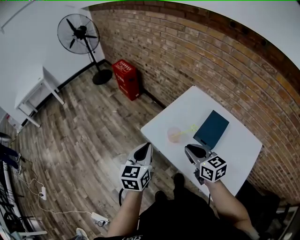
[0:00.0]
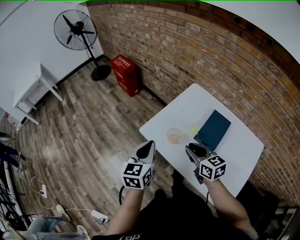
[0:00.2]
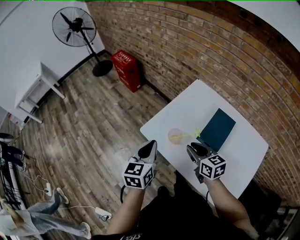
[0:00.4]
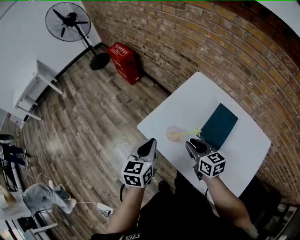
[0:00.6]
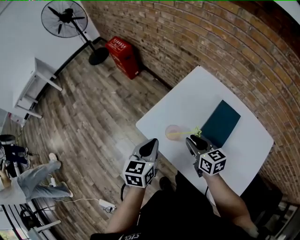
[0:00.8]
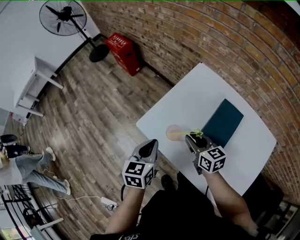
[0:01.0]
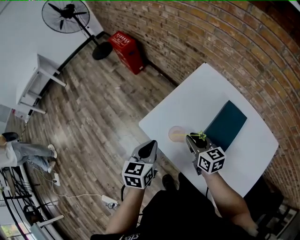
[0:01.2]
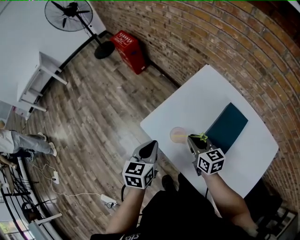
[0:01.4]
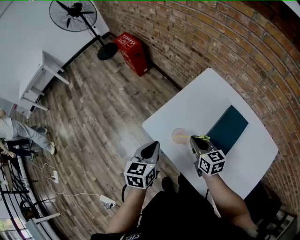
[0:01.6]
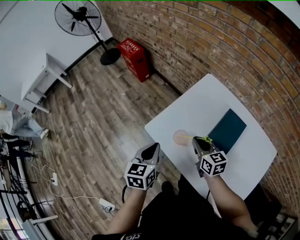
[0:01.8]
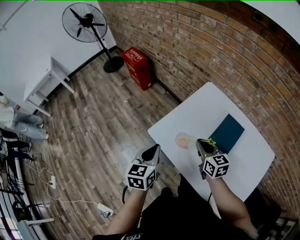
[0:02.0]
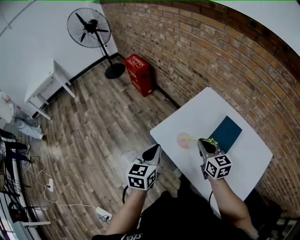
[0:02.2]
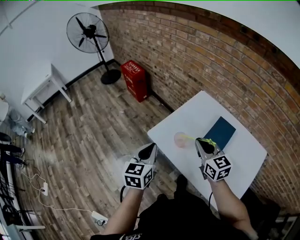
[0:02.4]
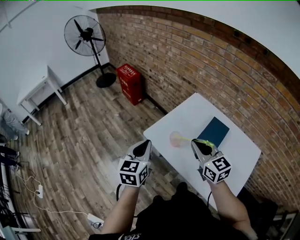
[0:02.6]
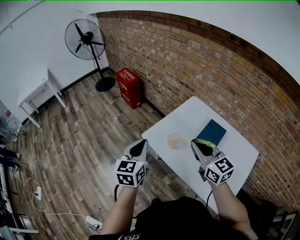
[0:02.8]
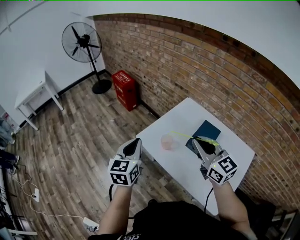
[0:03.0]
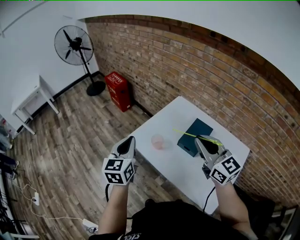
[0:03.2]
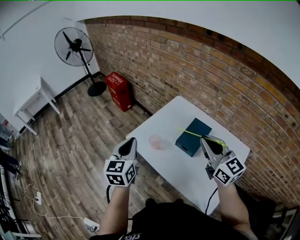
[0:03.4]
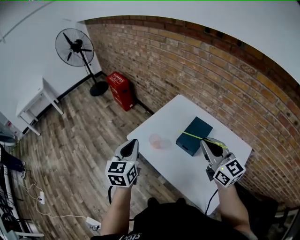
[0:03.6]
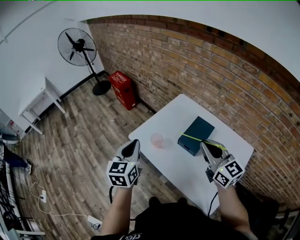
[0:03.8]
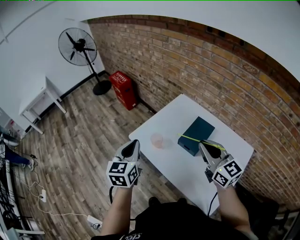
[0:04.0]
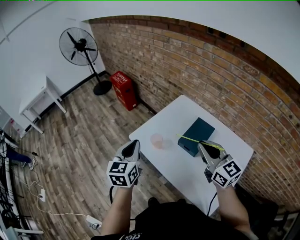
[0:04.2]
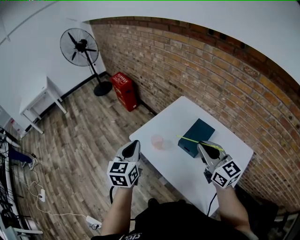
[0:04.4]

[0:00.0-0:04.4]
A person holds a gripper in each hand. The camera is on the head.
0:00.0 to 0:01.4: The left gripper heads downward, forward and to the right, covering about 15 cm. The right gripper is displaced downward and forward by roughly 20 cm.
0:01.4 to 0:03.0: The left gripper is displaced upward and backward by some 20 cm, and swivels some 20 degrees. The right gripper moves upward and backward, roughly 30 cm, and turns by approximately 30 degrees.
0:03.0 to 0:04.4: Both grippers travel together to the right, roughly 10 cm.

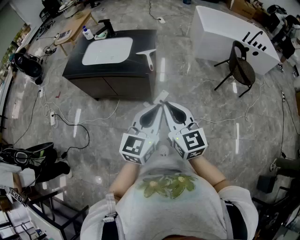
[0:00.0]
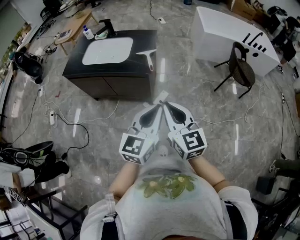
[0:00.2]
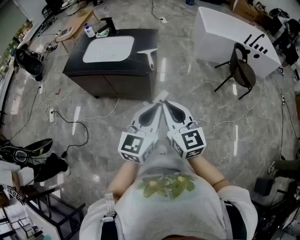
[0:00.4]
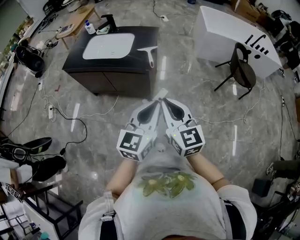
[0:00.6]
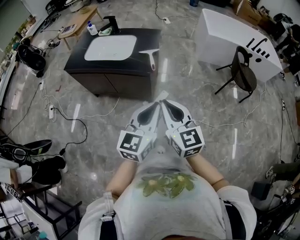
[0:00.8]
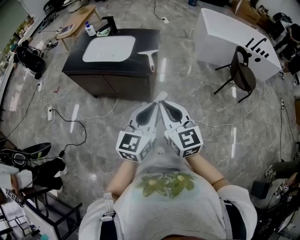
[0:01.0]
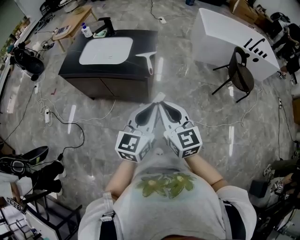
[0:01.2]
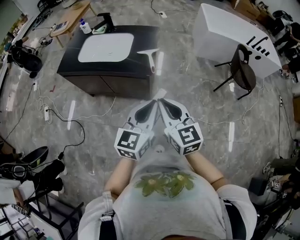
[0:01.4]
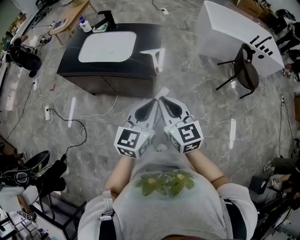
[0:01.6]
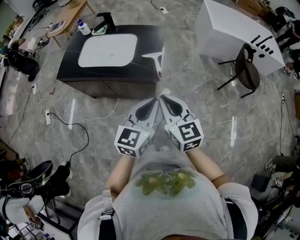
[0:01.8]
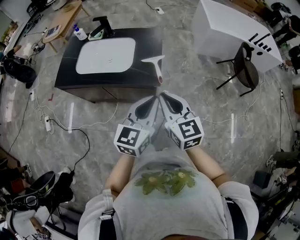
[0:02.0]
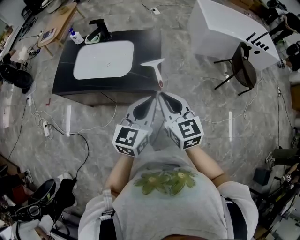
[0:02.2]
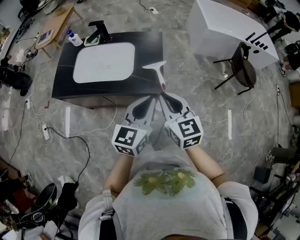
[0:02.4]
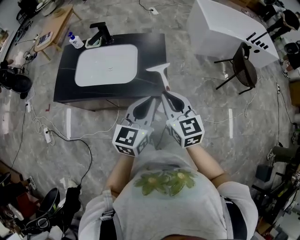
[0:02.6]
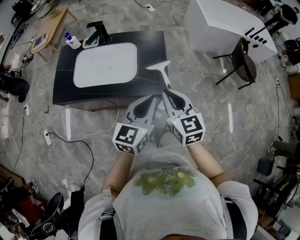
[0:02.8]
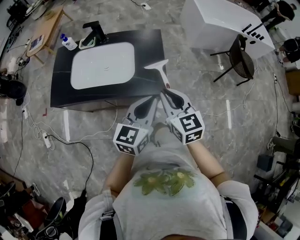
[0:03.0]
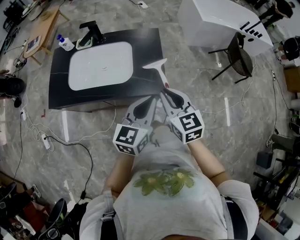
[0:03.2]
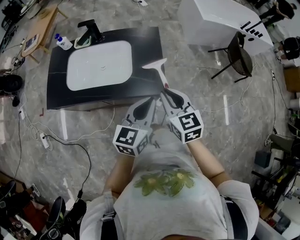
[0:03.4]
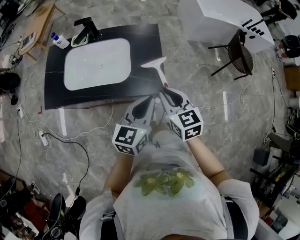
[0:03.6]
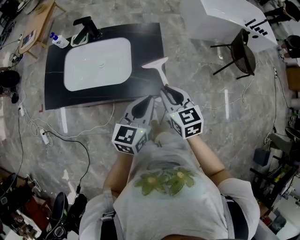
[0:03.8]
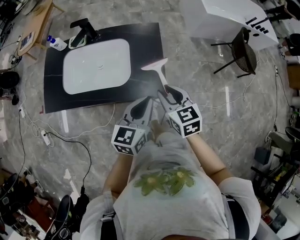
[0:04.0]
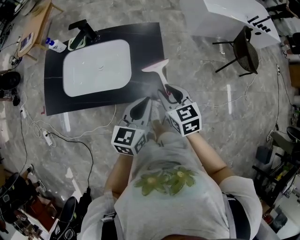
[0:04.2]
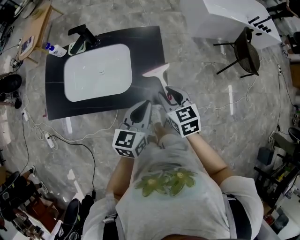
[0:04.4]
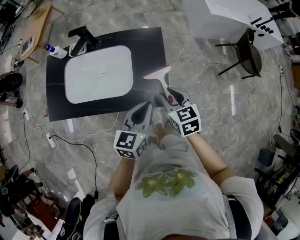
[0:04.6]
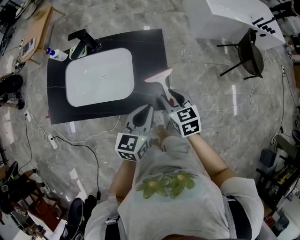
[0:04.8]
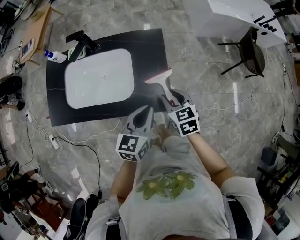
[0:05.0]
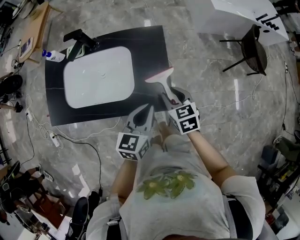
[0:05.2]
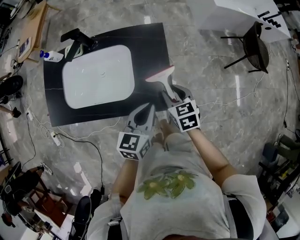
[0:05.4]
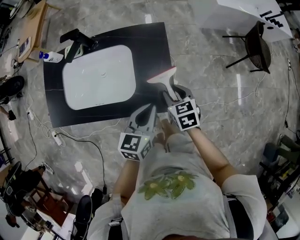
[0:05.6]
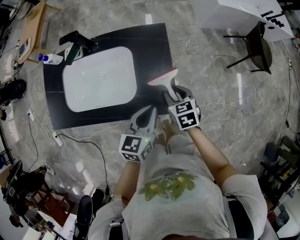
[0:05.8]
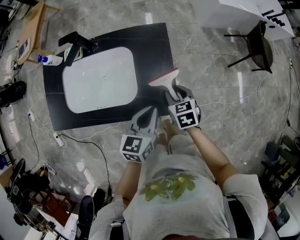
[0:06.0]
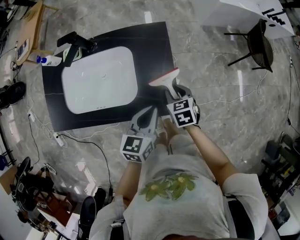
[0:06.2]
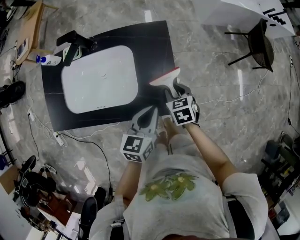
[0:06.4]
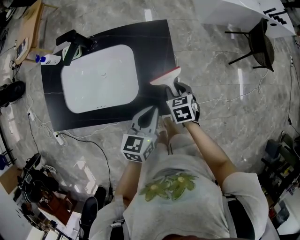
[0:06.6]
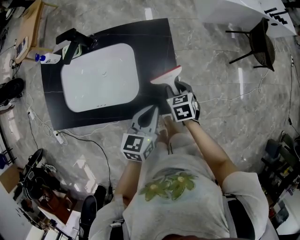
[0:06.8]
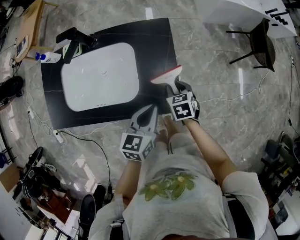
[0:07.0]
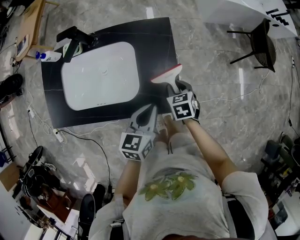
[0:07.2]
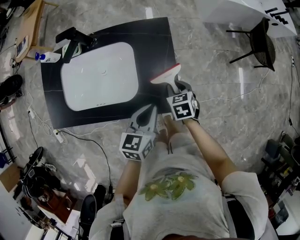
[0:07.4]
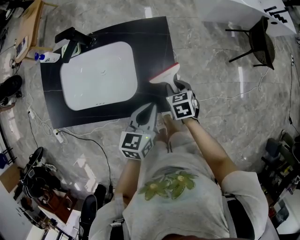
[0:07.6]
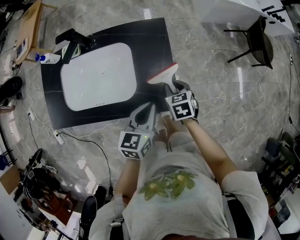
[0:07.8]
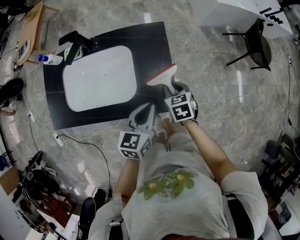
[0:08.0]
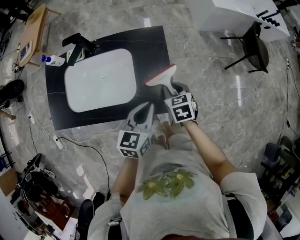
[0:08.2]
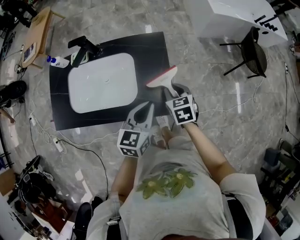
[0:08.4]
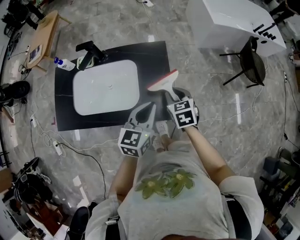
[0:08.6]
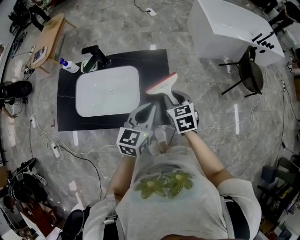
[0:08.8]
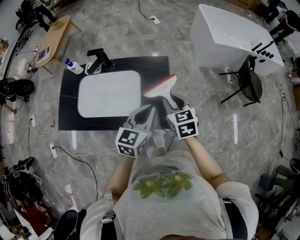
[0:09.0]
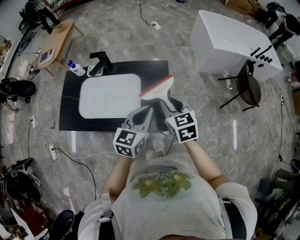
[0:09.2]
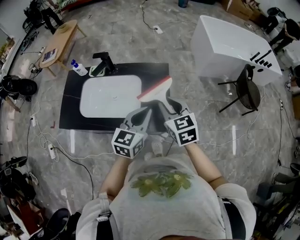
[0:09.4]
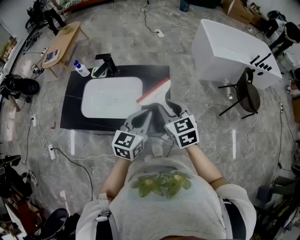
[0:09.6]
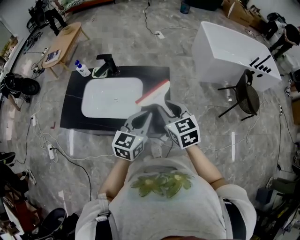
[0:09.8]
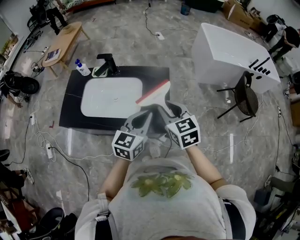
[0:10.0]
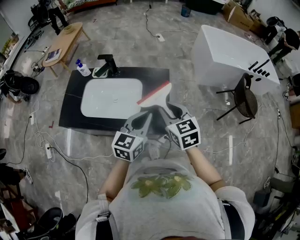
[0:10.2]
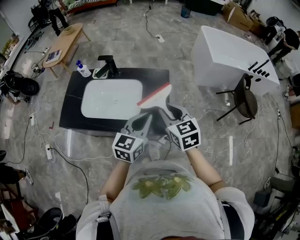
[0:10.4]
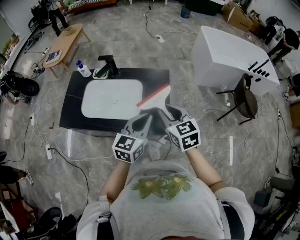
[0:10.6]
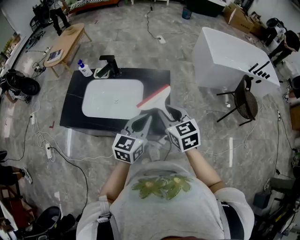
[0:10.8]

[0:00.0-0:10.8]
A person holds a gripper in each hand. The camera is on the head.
0:00.0 to 0:01.6: The grippers both shift forward and to the left by some 10 cm.
0:01.6 to 0:03.0: The grippers both shift forward and to the left by roughly 20 cm.
0:03.0 to 0:04.6: The grippers both shift forward and downward by about 15 cm.
0:04.6 to 0:06.2: The right gripper travels downward and forward by some 15 cm; the left gripper travels downward by approximately 5 cm.
0:06.2 to 0:07.8: The grippers stay close to where they were, moving slightly.
0:07.8 to 0:09.2: The left gripper goes approximately 15 cm upward. The right gripper heads upward, covering some 20 cm, and rotates roughly 30 degrees.
0:09.2 to 0:10.8: The right gripper ends up roughly 5 cm from where it was.

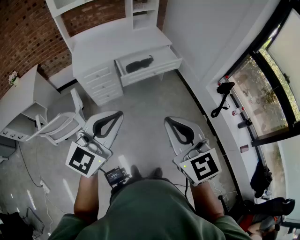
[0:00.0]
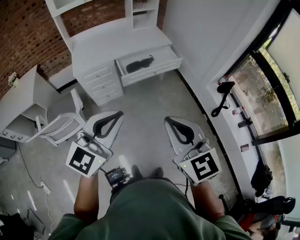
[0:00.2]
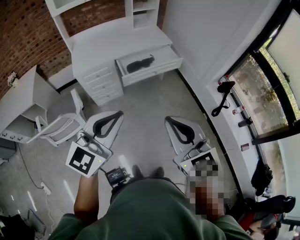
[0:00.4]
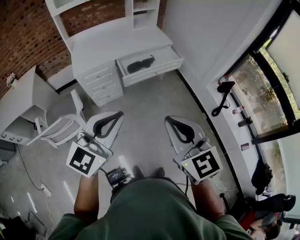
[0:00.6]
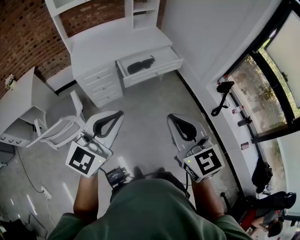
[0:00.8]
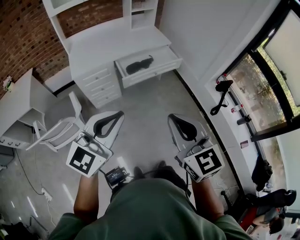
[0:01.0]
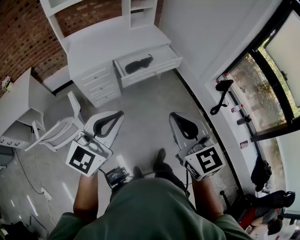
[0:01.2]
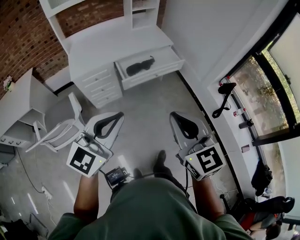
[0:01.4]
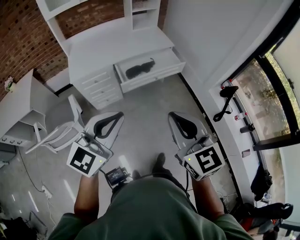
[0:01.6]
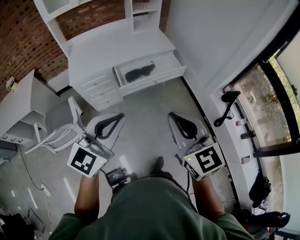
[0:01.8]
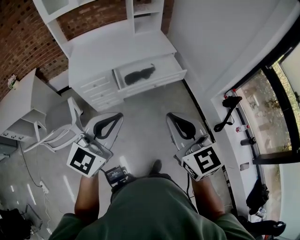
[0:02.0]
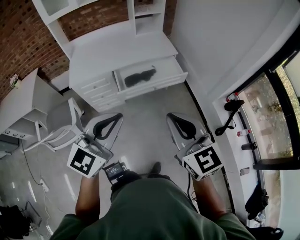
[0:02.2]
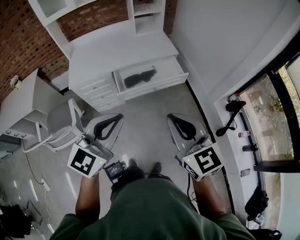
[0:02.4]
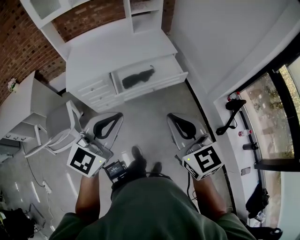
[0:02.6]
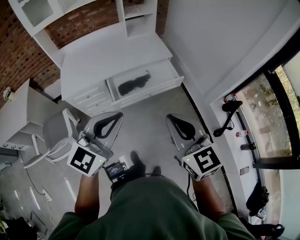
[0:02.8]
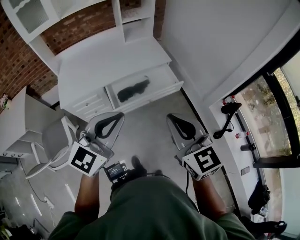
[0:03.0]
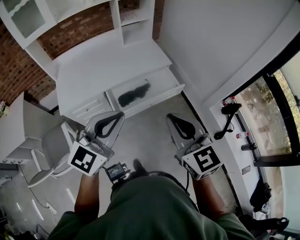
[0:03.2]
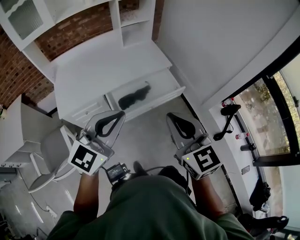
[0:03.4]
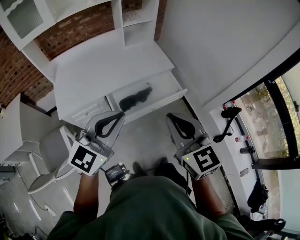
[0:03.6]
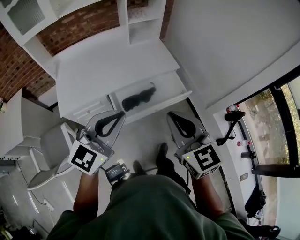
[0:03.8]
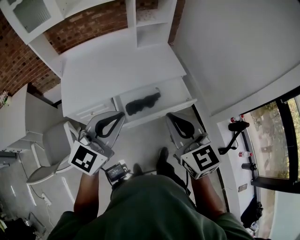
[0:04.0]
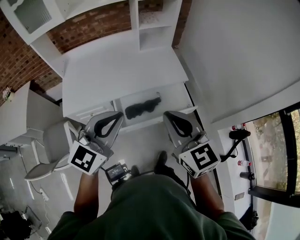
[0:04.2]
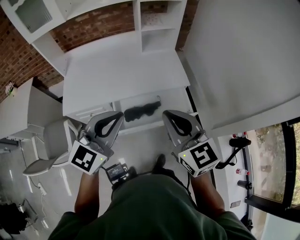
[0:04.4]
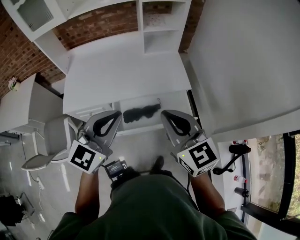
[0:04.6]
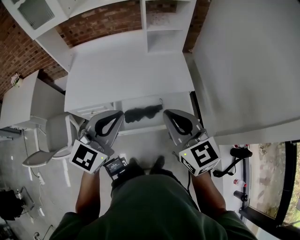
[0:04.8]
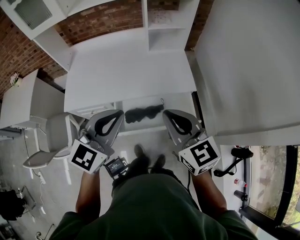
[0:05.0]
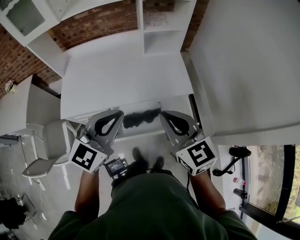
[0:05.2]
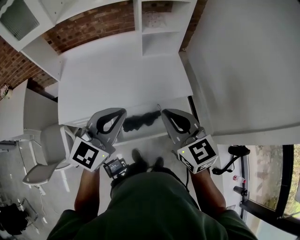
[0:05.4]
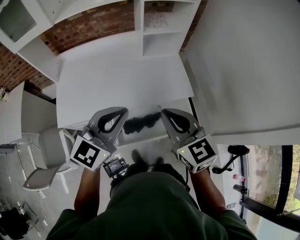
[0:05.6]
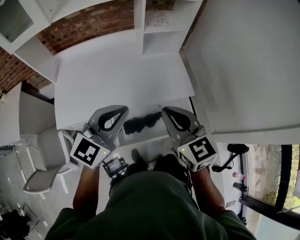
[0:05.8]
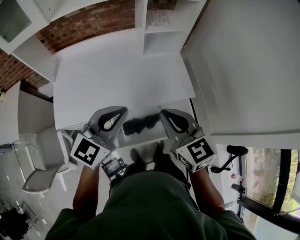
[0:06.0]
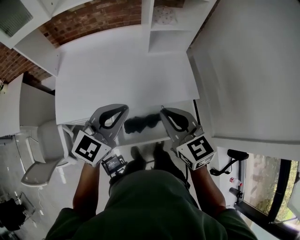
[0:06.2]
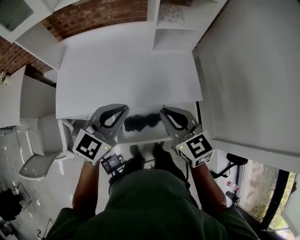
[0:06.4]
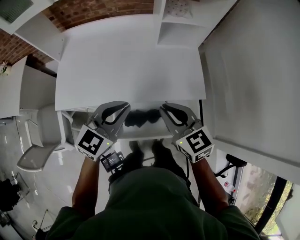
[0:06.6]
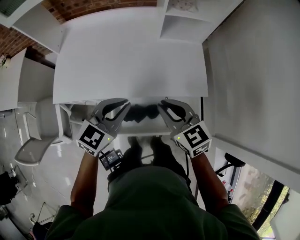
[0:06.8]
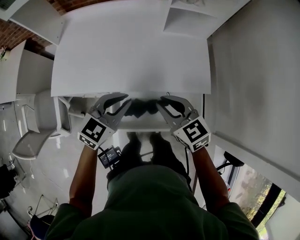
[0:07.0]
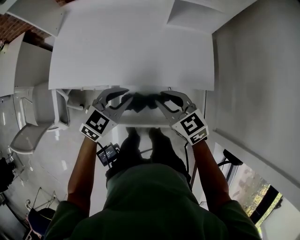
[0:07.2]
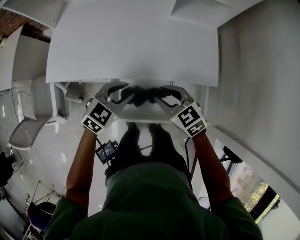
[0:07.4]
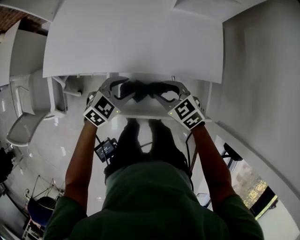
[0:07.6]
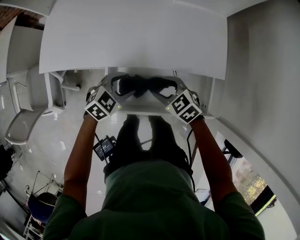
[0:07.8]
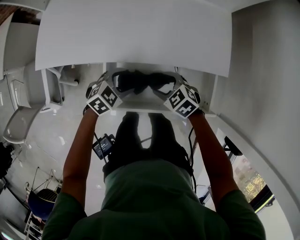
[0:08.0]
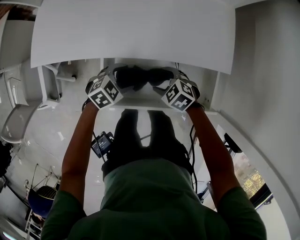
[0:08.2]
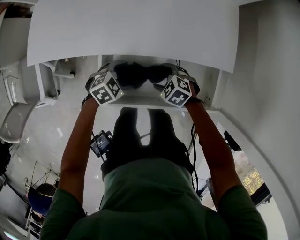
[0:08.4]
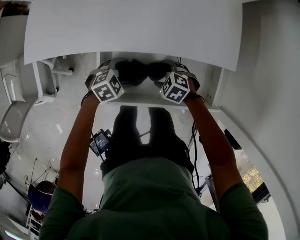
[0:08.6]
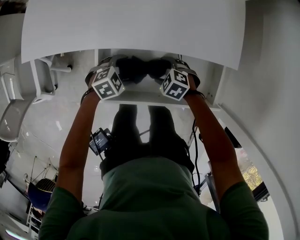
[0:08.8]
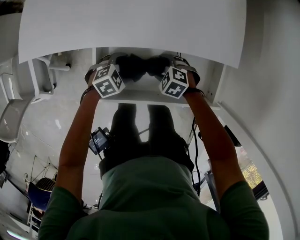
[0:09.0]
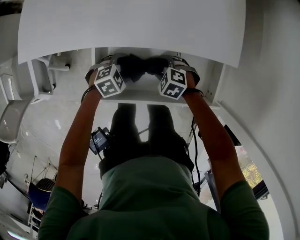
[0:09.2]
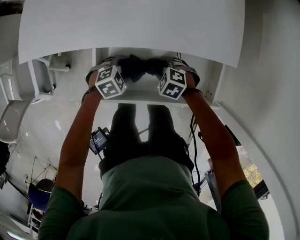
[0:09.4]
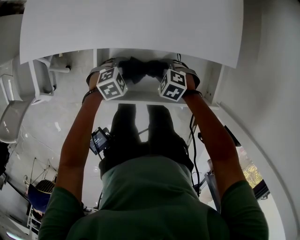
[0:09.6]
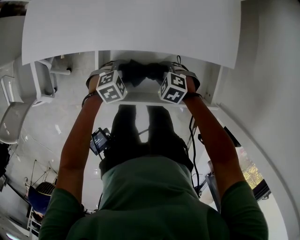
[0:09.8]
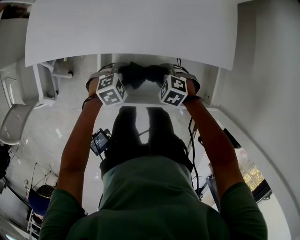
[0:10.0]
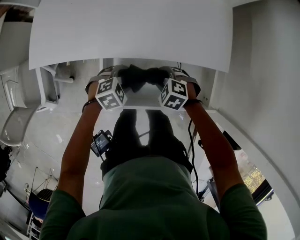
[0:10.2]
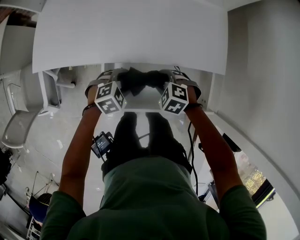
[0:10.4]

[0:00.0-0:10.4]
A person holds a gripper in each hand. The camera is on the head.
0:00.0 to 0:01.4: The left gripper goes roughly 10 cm forward and to the left. The right gripper is displaced forward by approximately 10 cm.
0:01.4 to 0:03.0: The two grippers go roughly 30 cm forward.
0:03.0 to 0:04.4: The grippers both shift forward by about 25 cm.
0:04.4 to 0:06.0: The two grippers go roughly 20 cm forward.
0:06.0 to 0:07.4: Both grippers travel together downward, about 25 cm. The left gripper turns by approximately 30 degrees. Meanwhile the right gripper turns by some 40 degrees.
0:07.4 to 0:09.0: Both grippers move downward, some 30 cm. The left gripper changes its angle by roughly 30 degrees, and opens its fingers. Meanwhile the right gripper tilts its fingers about 30 degrees downward, and opens.
0:09.0 to 0:10.4: The two grippers go some 10 cm upward. The right gripper closes.